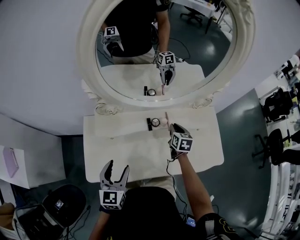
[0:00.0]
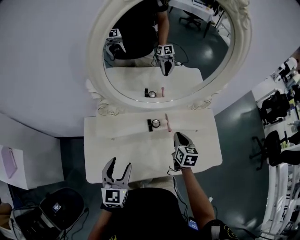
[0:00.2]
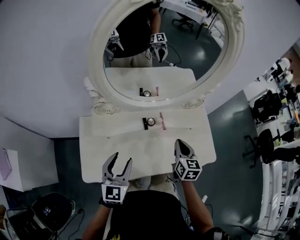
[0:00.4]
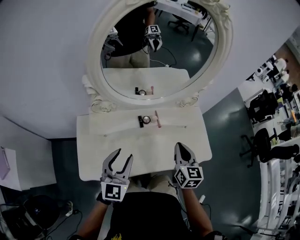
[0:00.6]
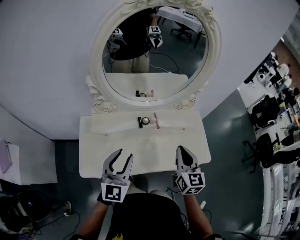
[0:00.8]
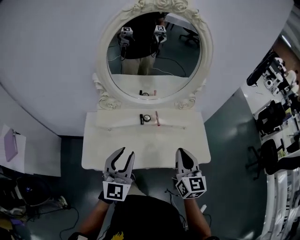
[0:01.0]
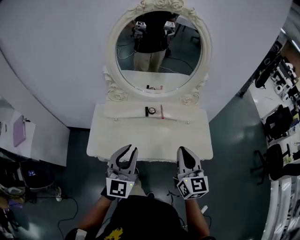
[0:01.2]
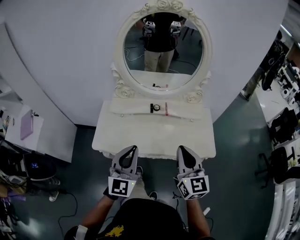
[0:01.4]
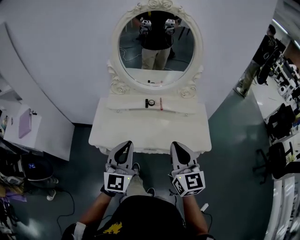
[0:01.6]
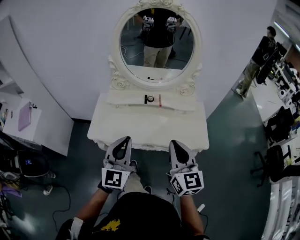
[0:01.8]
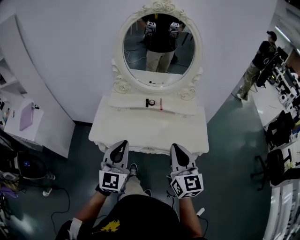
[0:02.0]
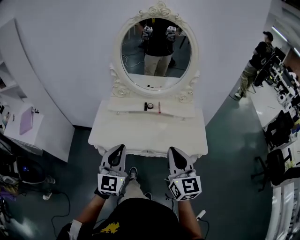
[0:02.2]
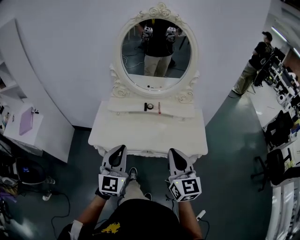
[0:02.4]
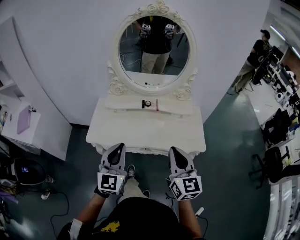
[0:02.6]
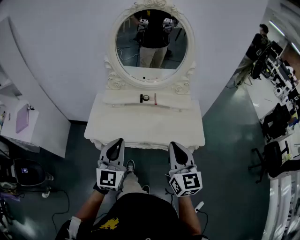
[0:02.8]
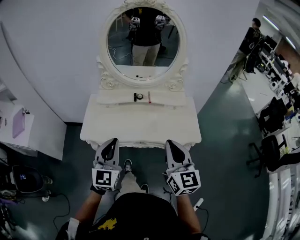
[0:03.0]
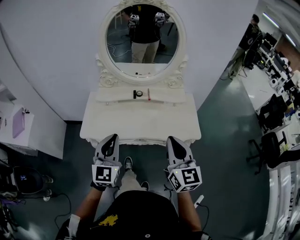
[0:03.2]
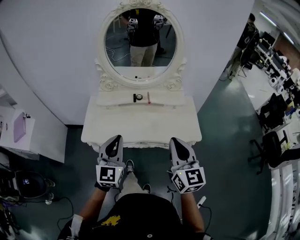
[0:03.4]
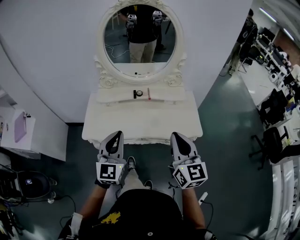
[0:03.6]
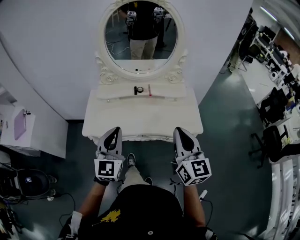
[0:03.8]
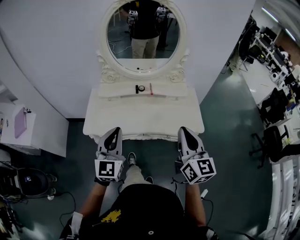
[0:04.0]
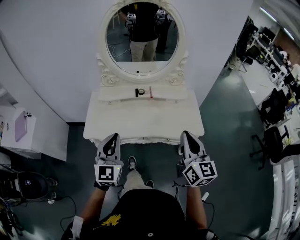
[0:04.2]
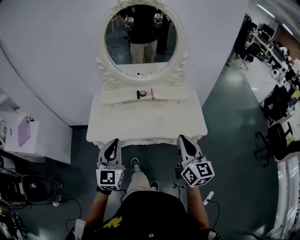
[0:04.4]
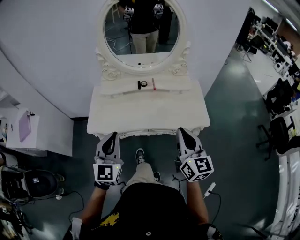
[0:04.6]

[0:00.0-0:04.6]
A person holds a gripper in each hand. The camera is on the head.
0.0 to 1.6 s: The right gripper travels backward and upward by roughly 50 cm, and points its fingers approximately 40 degrees further upward, while the left gripper goes some 35 cm backward, upward and to the right, changes its angle by roughly 30 degrees, and closes.
1.6 to 3.0 s: The left gripper ends up approximately 5 cm from where it was. Meanwhile the right gripper travels backward by approximately 5 cm.
3.0 to 4.6 s: There are only small adjustments of the grippers.

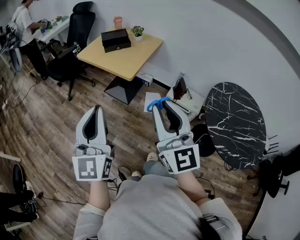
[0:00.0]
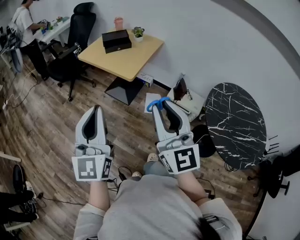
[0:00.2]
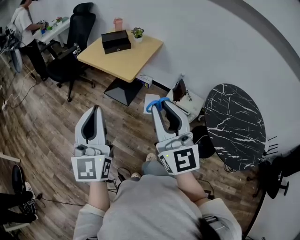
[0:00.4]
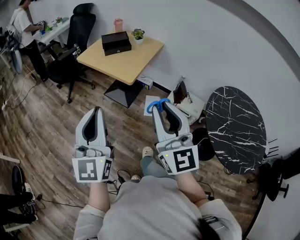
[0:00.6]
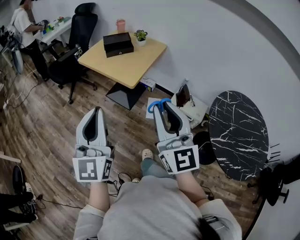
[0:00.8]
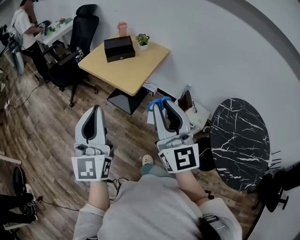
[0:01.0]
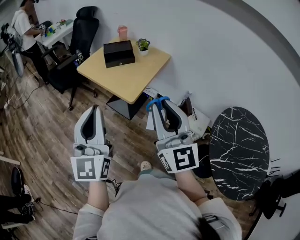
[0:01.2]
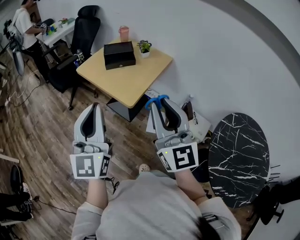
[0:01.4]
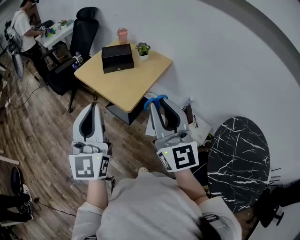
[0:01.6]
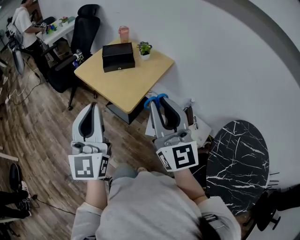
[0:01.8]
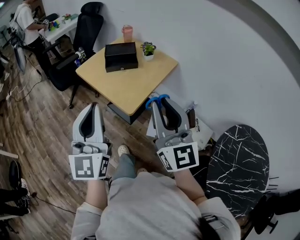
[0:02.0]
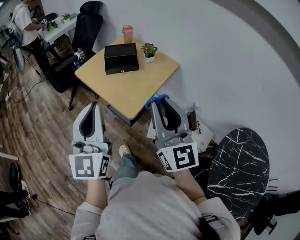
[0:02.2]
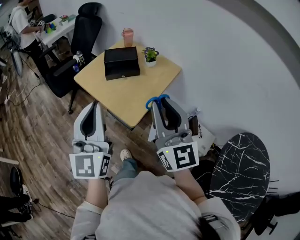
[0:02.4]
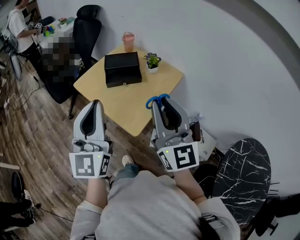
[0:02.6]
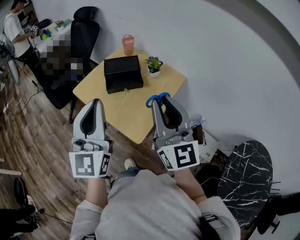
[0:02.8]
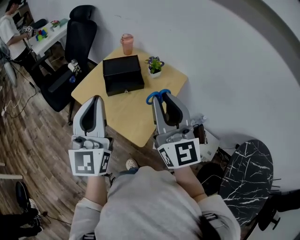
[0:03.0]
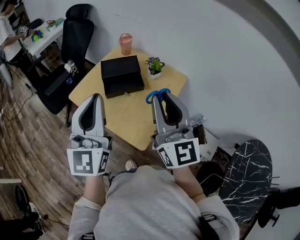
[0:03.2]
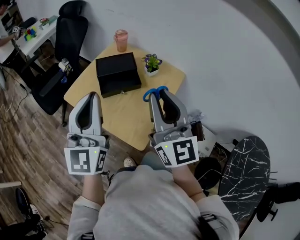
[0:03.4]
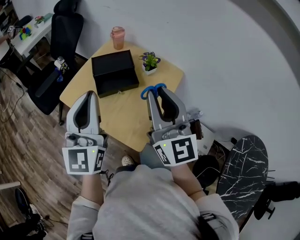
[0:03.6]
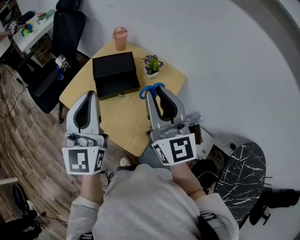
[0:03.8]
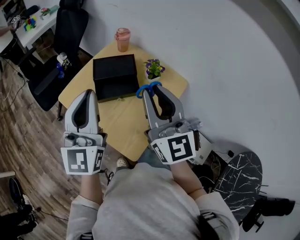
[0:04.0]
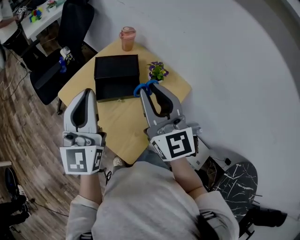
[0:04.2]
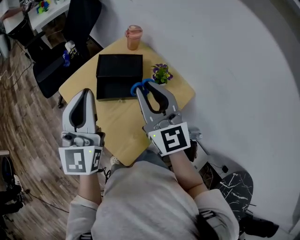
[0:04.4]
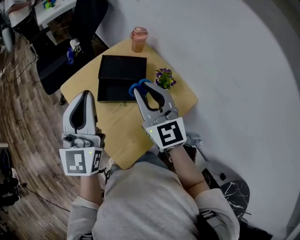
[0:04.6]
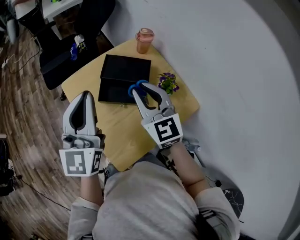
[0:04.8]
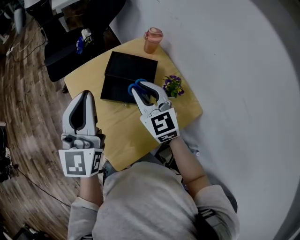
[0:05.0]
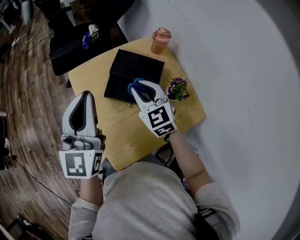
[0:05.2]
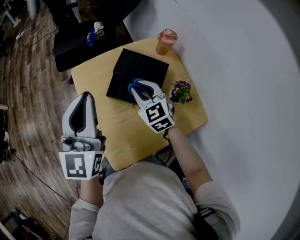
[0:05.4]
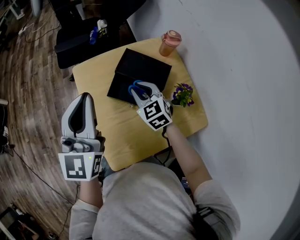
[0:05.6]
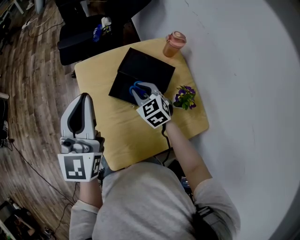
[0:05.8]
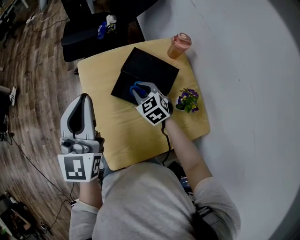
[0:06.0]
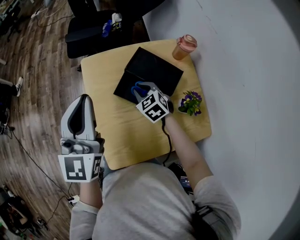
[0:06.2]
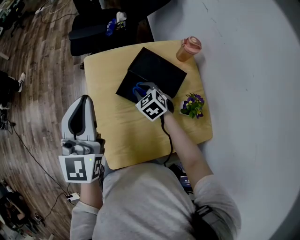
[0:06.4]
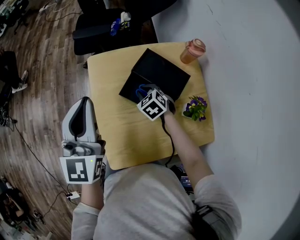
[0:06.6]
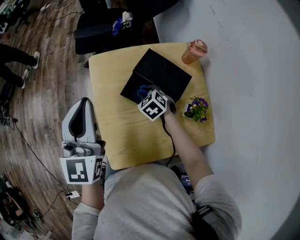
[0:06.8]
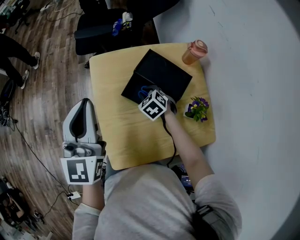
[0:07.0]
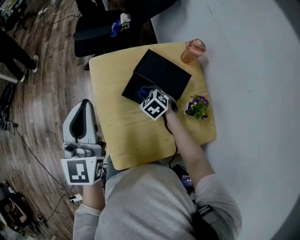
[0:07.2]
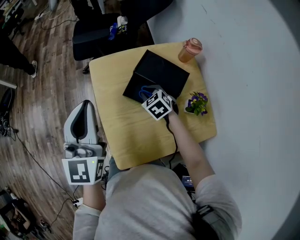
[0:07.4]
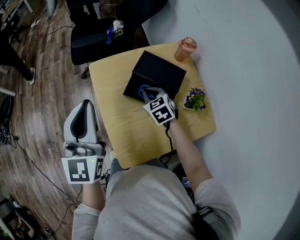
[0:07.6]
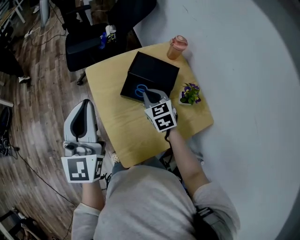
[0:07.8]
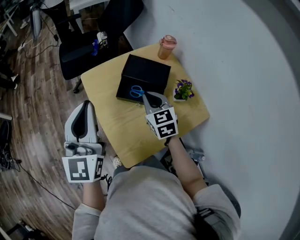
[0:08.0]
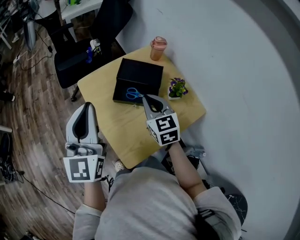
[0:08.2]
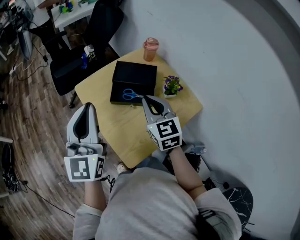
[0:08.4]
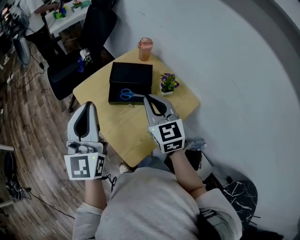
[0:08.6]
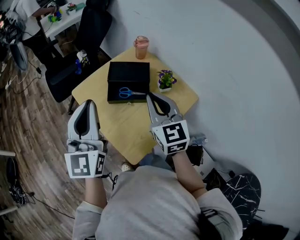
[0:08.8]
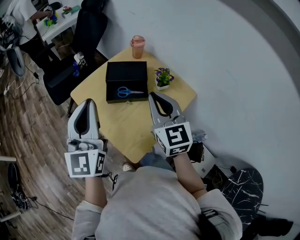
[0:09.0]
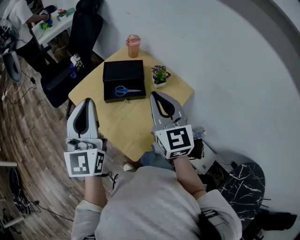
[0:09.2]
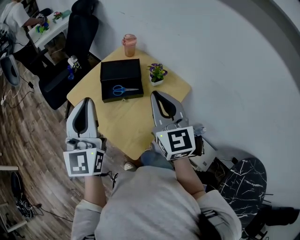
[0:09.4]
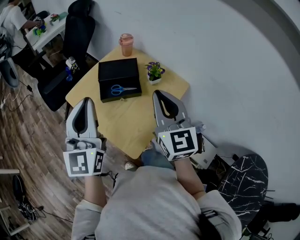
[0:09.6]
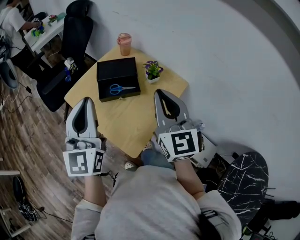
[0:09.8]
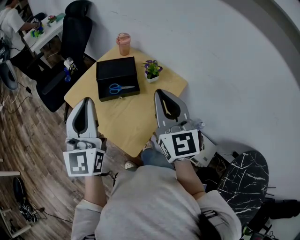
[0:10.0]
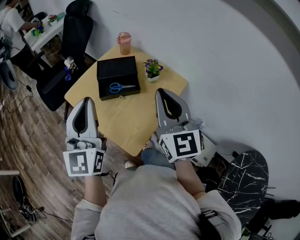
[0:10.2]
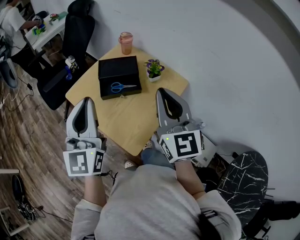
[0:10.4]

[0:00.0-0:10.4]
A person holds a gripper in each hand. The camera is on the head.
0.0 to 1.4 s: Both grippers travel together forward, some 20 cm.
1.4 to 3.0 s: Both grippers move forward, roughly 30 cm.
3.0 to 4.4 s: Both grippers travel together forward, some 20 cm. The right gripper turns by about 20 degrees.
4.4 to 6.0 s: The left gripper shifts by roughly 10 cm, and swivels about 30 degrees. The right gripper moves downward, some 30 cm, and points its fingers about 40 degrees further downward.
7.4 to 9.0 s: The left gripper goes approximately 5 cm upward, and changes its angle by some 30 degrees. The right gripper heads upward, covering about 30 cm, and points its fingers approximately 50 degrees further upward.
9.0 to 10.4 s: The right gripper shifts about 10 cm backward and upward.

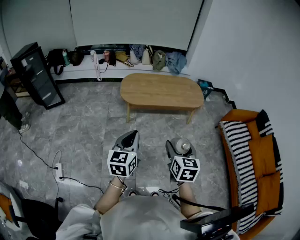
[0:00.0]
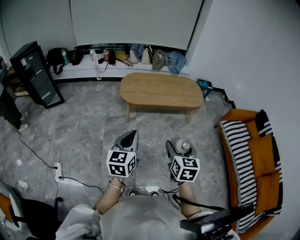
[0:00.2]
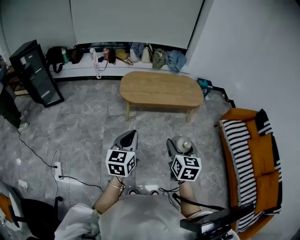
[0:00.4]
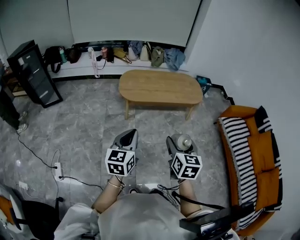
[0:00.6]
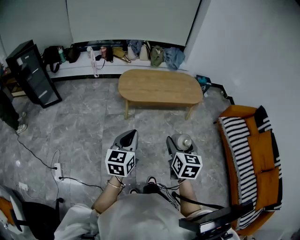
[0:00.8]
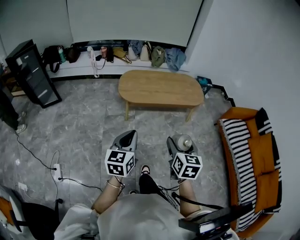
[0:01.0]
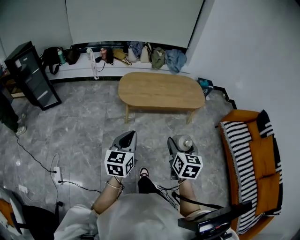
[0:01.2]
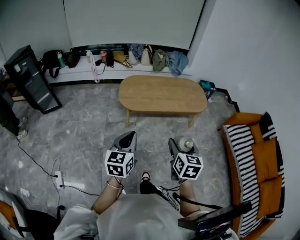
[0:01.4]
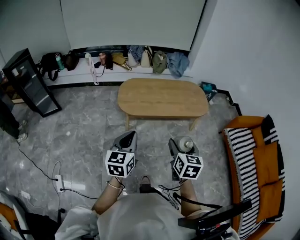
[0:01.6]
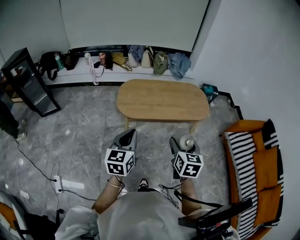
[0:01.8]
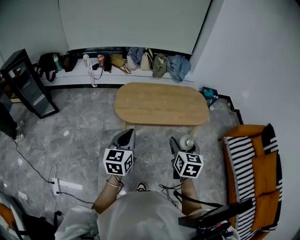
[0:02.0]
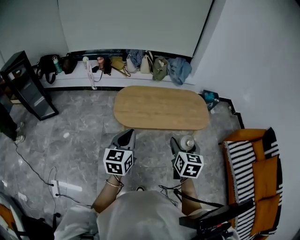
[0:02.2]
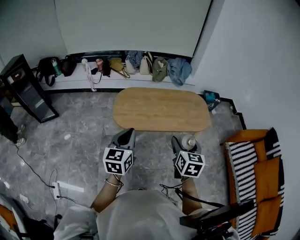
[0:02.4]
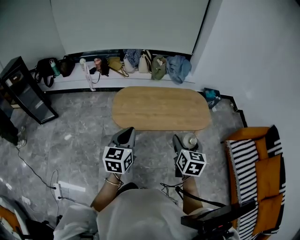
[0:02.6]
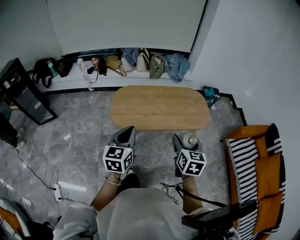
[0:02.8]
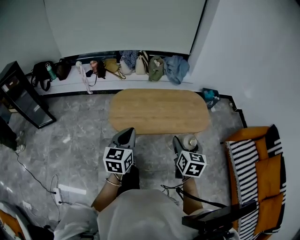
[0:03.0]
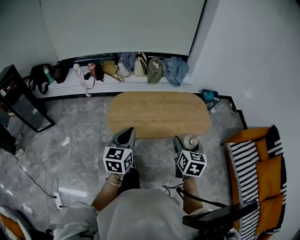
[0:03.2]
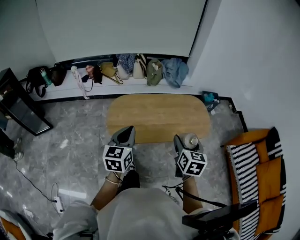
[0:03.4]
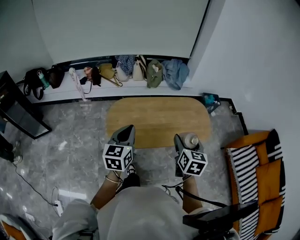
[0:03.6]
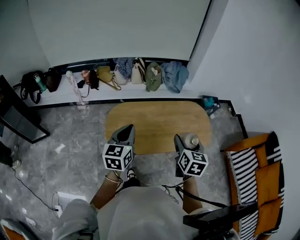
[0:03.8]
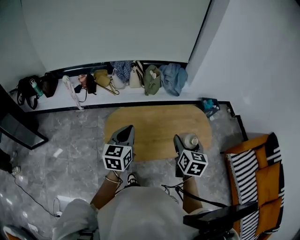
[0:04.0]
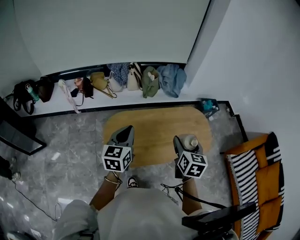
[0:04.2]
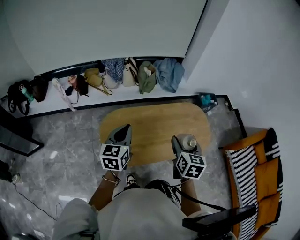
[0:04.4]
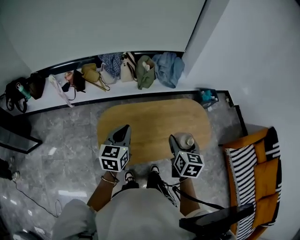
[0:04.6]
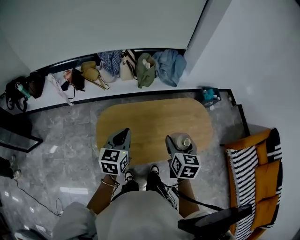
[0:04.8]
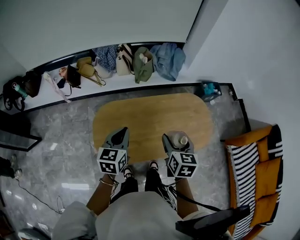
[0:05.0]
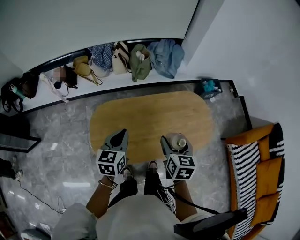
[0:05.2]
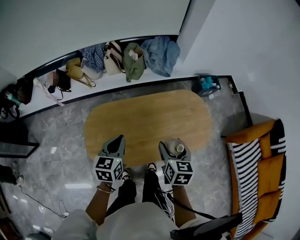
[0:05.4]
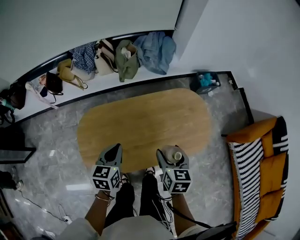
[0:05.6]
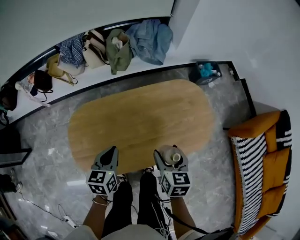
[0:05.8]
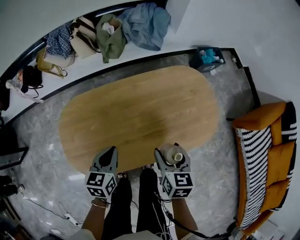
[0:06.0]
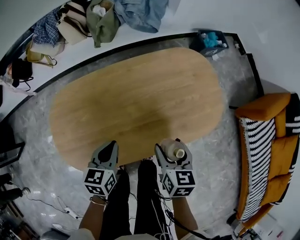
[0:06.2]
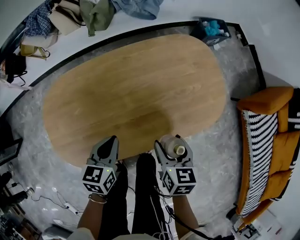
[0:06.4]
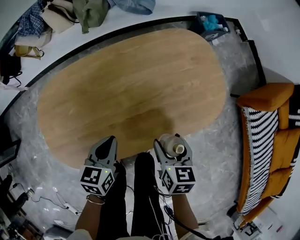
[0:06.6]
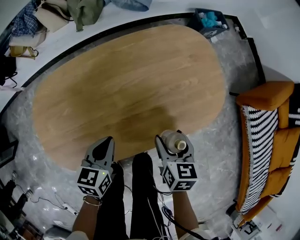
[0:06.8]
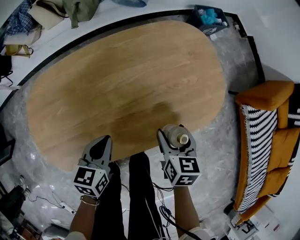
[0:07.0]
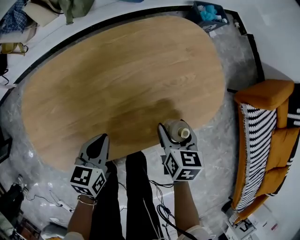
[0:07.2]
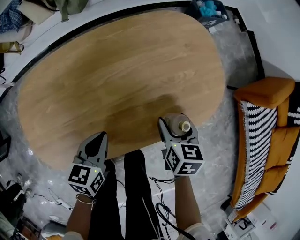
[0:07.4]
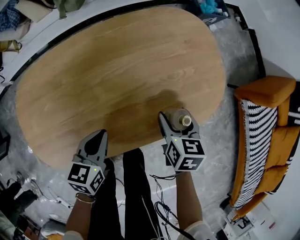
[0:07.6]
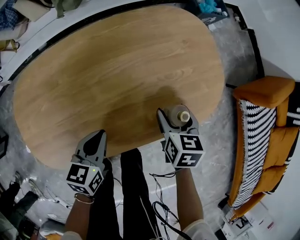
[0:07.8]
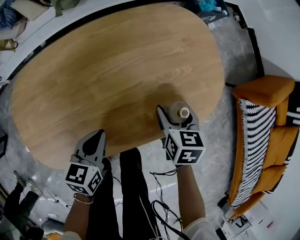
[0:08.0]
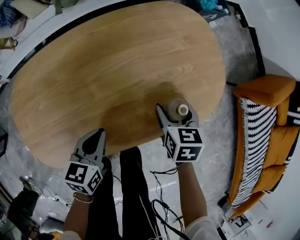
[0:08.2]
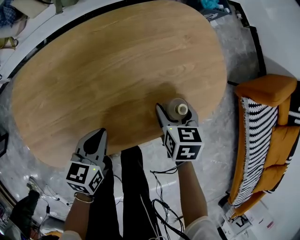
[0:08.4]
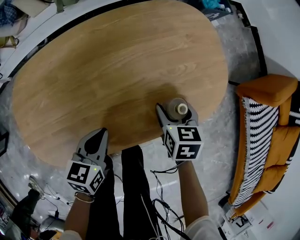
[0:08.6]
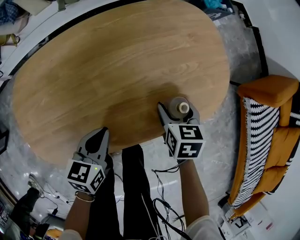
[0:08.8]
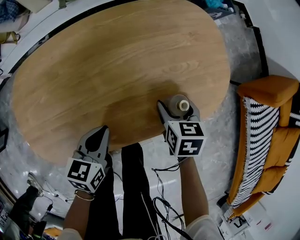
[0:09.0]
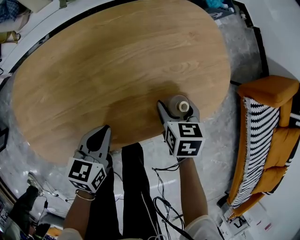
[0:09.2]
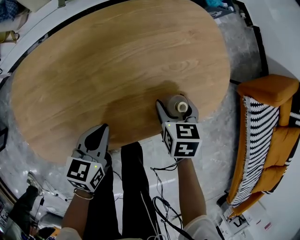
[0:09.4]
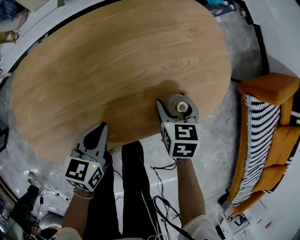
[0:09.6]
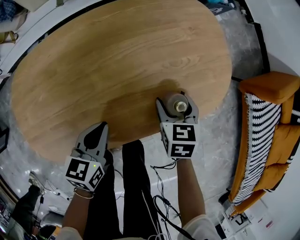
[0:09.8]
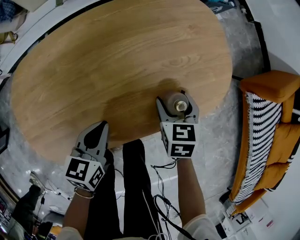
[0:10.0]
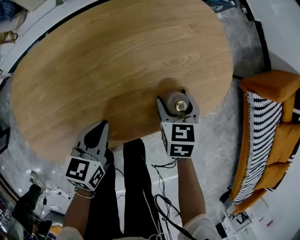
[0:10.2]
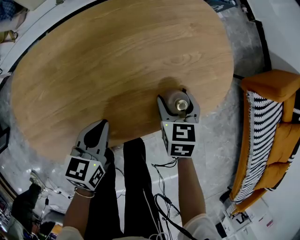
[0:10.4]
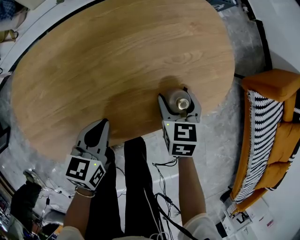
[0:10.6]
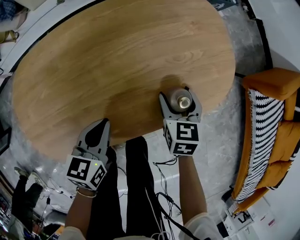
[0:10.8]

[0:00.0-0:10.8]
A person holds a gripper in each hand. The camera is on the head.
0.0 to 1.6 s: Both grippers travel together forward, roughly 15 cm.
1.6 to 3.0 s: Both grippers move forward, some 20 cm.
3.0 to 4.6 s: Both grippers move forward, some 30 cm.
4.6 to 6.2 s: The left gripper moves downward and to the right, roughly 35 cm, and rotates about 20 degrees, while the right gripper goes approximately 30 cm downward.
6.2 to 7.8 s: The right gripper travels downward, to the right and forward by roughly 20 cm. The left gripper shifts approximately 15 cm downward and to the right.
7.8 to 10.8 s: The grippers move only a little.
